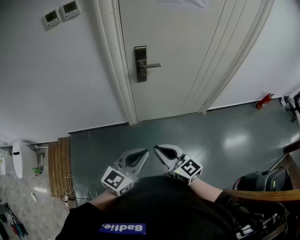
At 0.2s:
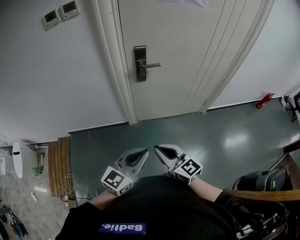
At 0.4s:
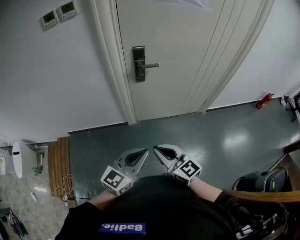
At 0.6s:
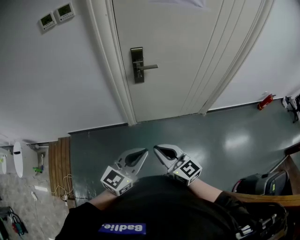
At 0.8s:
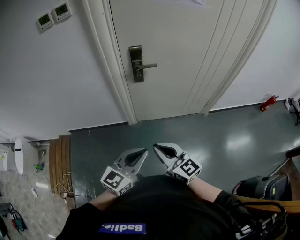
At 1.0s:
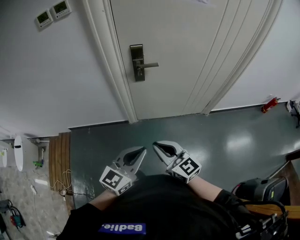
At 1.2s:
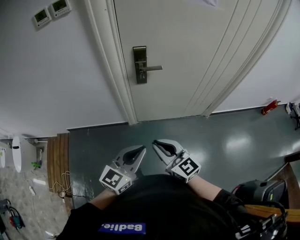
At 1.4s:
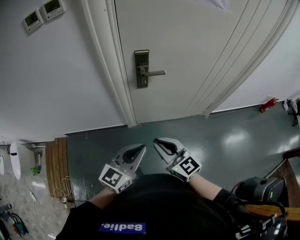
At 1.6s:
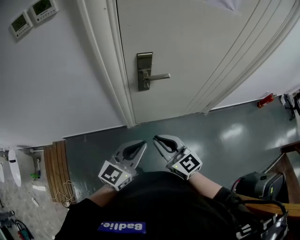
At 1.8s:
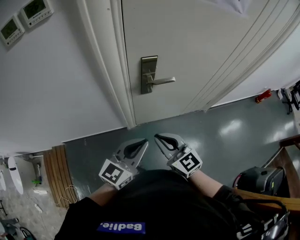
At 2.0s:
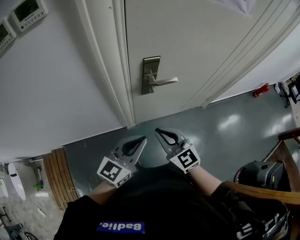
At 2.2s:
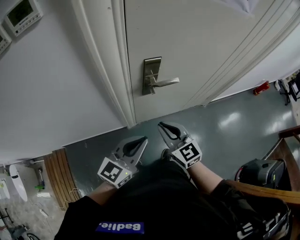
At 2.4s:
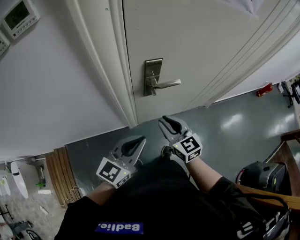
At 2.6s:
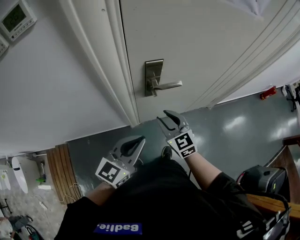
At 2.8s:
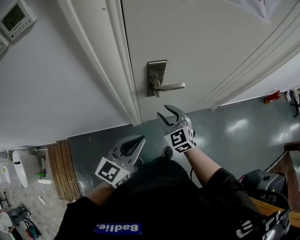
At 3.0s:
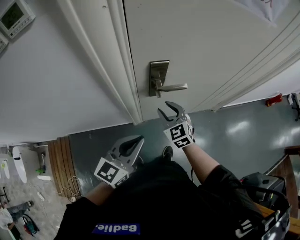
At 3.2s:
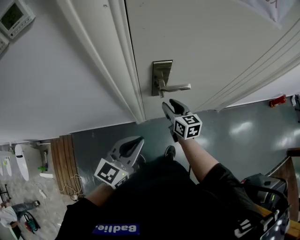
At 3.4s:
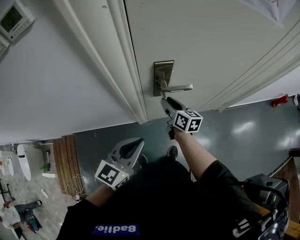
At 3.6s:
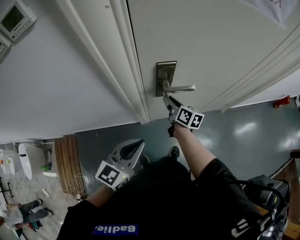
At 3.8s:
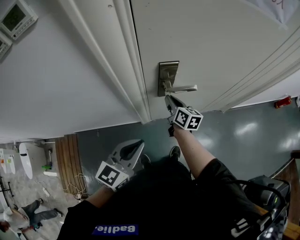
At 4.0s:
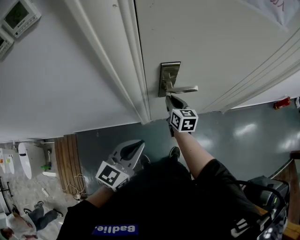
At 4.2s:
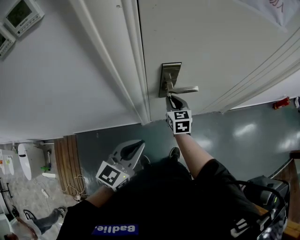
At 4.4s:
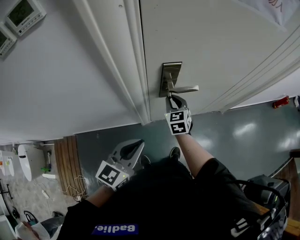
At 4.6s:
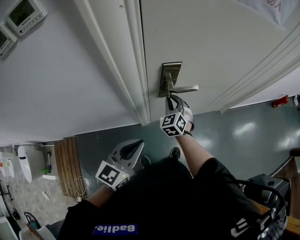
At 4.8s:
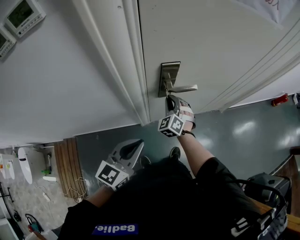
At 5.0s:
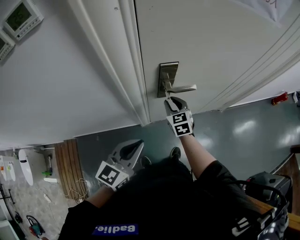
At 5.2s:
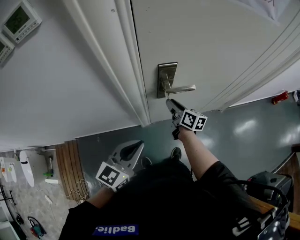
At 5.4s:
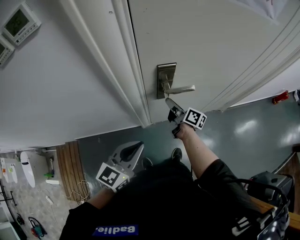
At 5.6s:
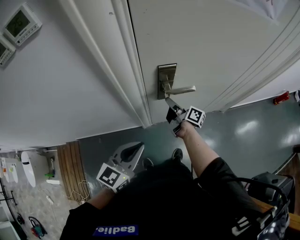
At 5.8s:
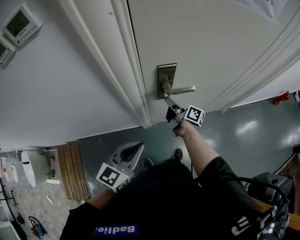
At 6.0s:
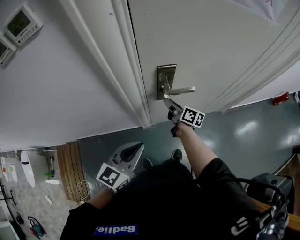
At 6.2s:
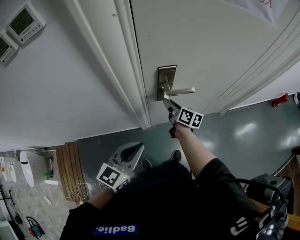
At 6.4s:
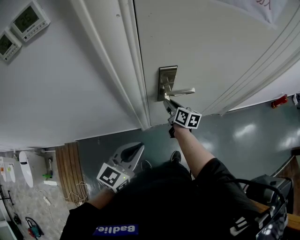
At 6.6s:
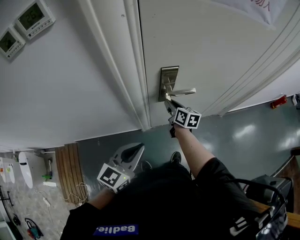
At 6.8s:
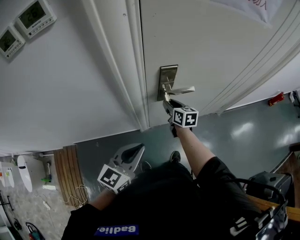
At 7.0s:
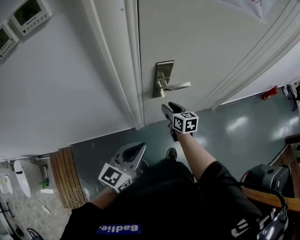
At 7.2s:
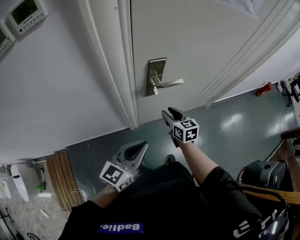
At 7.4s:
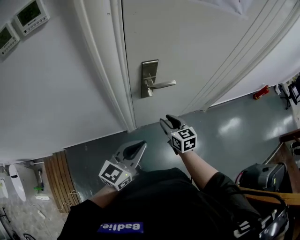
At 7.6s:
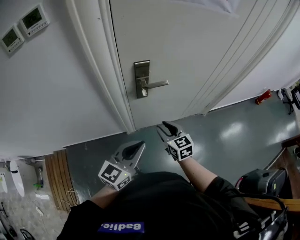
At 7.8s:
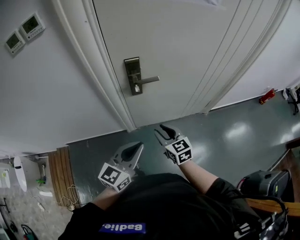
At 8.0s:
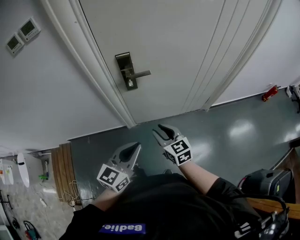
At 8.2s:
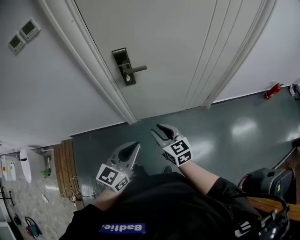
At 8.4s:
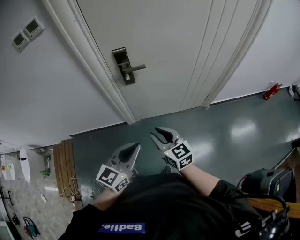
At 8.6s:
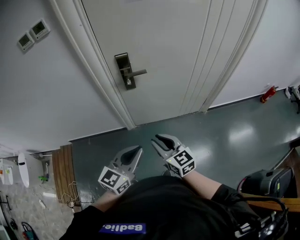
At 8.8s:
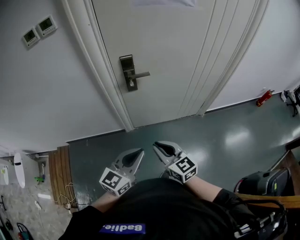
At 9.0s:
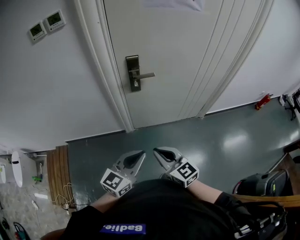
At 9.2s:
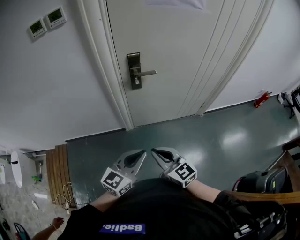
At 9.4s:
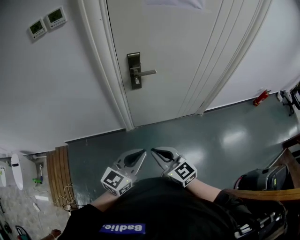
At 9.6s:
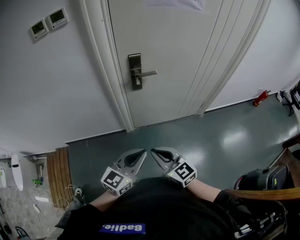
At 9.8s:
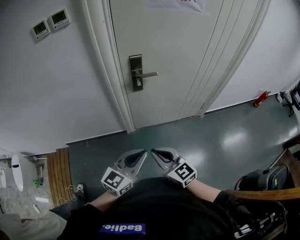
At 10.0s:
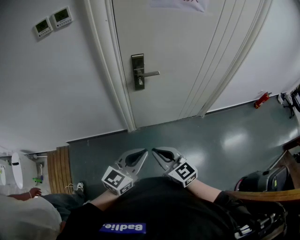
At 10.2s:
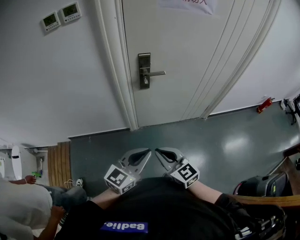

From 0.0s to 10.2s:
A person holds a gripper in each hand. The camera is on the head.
From 0.0s to 1.4s: The grippers both shift forward by roughly 15 cm.
From 1.4s to 3.0s: The left gripper is displaced forward and to the left by some 20 cm, while the right gripper heads forward, covering about 30 cm, swivels some 30 degrees, and opens up.
From 3.0s to 4.4s: The right gripper moves forward, some 5 cm.
From 4.4s to 5.8s: The right gripper twists approximately 80 degrees clockwise, seen from behind.
From 5.8s to 7.2s: The right gripper travels backward by approximately 10 cm, and rotates around the line of its fingers by approximately 50 degrees, counterclockwise from behind.
From 7.2s to 8.8s: The right gripper moves backward, some 30 cm, turns by roughly 30 degrees, and closes its fingers, while the left gripper shifts roughly 25 cm backward and to the right.
From 8.8s to 10.2s: The left gripper goes approximately 5 cm to the left. The right gripper moves to the left and backward, some 10 cm.

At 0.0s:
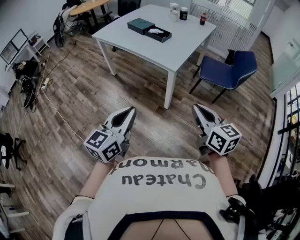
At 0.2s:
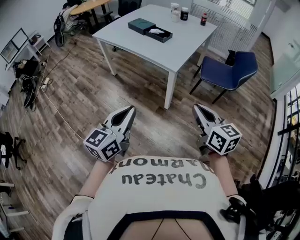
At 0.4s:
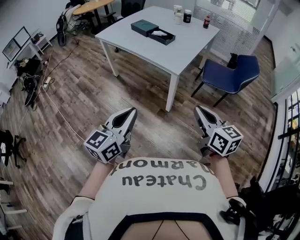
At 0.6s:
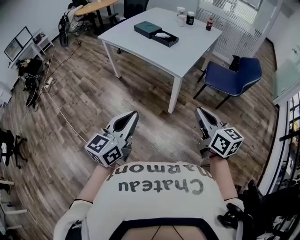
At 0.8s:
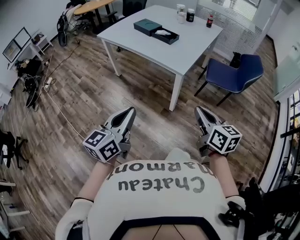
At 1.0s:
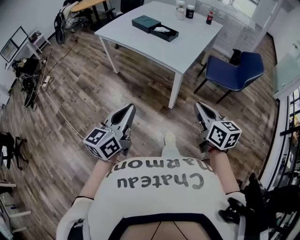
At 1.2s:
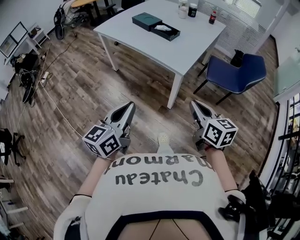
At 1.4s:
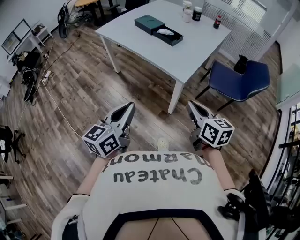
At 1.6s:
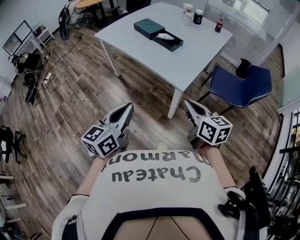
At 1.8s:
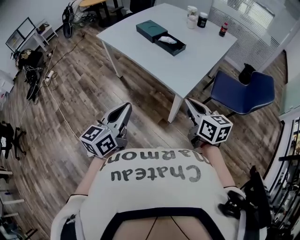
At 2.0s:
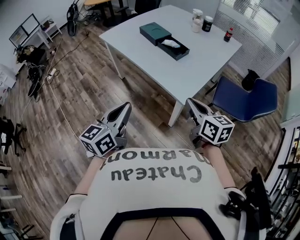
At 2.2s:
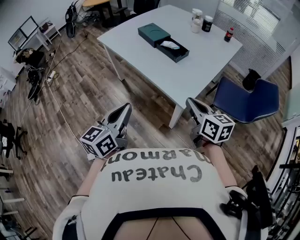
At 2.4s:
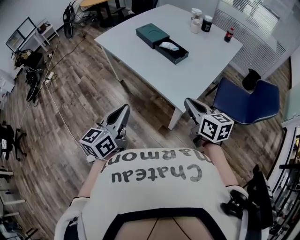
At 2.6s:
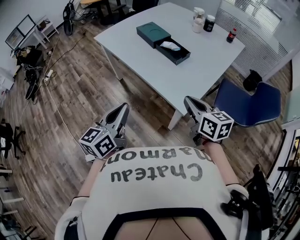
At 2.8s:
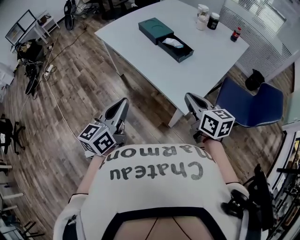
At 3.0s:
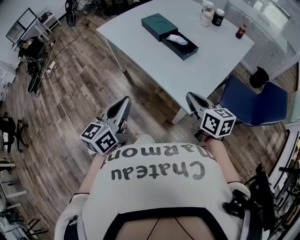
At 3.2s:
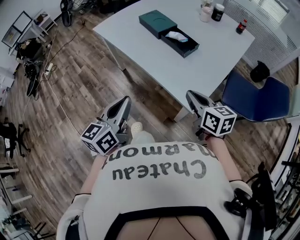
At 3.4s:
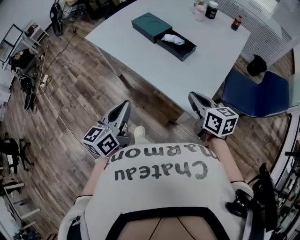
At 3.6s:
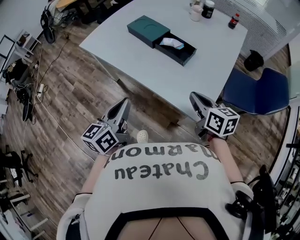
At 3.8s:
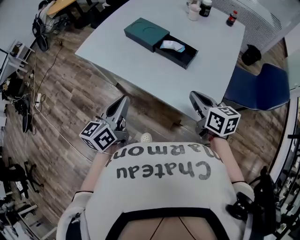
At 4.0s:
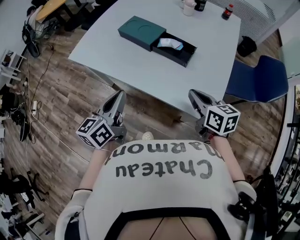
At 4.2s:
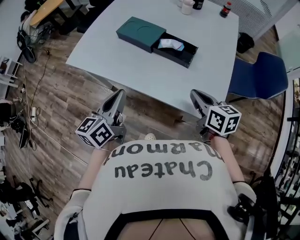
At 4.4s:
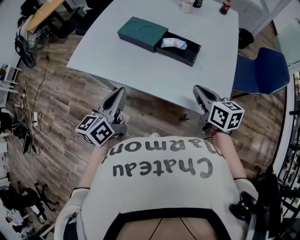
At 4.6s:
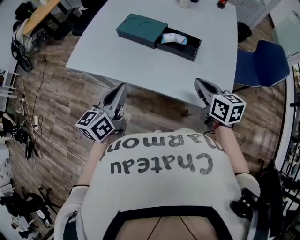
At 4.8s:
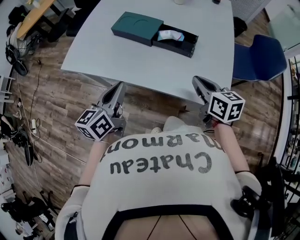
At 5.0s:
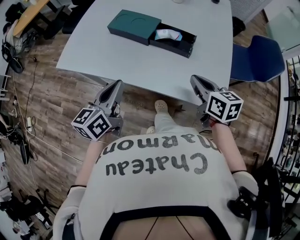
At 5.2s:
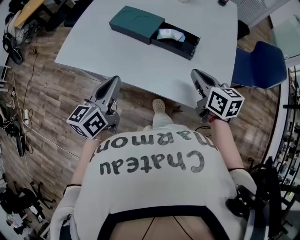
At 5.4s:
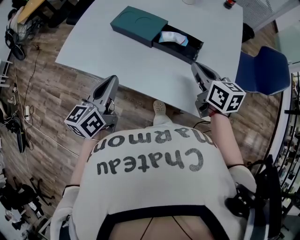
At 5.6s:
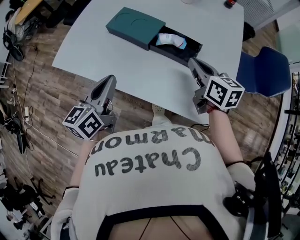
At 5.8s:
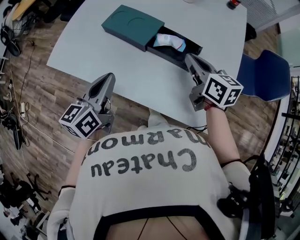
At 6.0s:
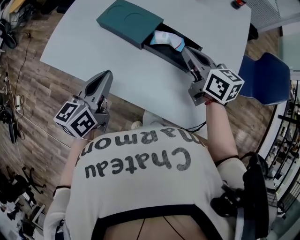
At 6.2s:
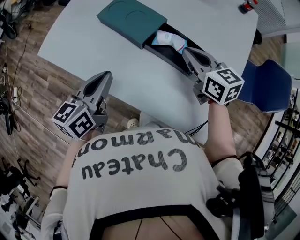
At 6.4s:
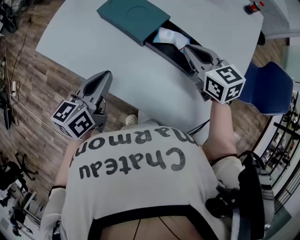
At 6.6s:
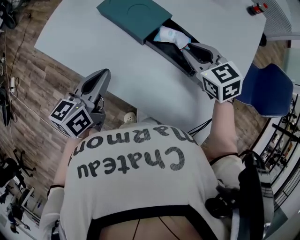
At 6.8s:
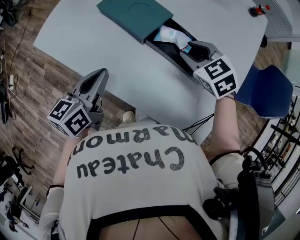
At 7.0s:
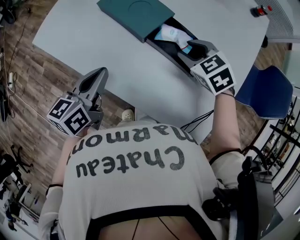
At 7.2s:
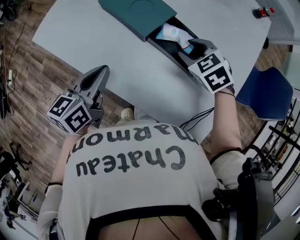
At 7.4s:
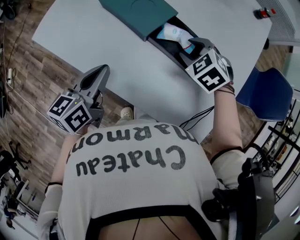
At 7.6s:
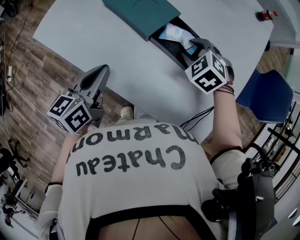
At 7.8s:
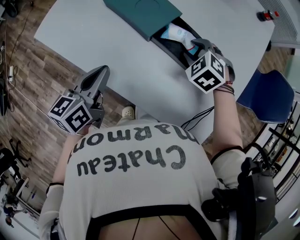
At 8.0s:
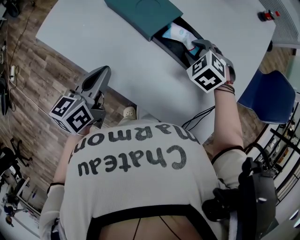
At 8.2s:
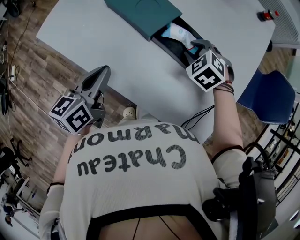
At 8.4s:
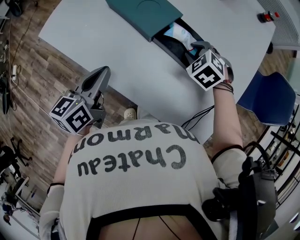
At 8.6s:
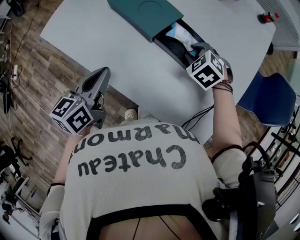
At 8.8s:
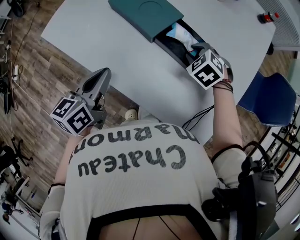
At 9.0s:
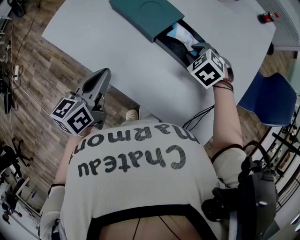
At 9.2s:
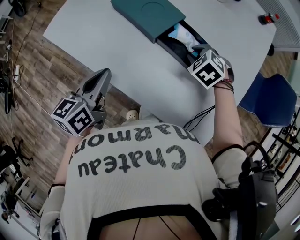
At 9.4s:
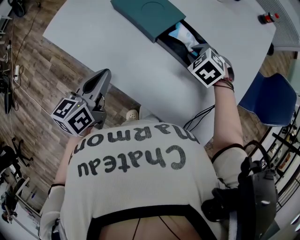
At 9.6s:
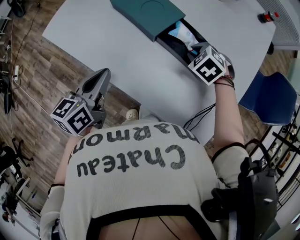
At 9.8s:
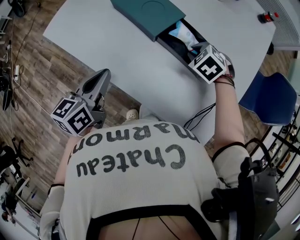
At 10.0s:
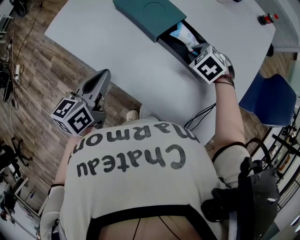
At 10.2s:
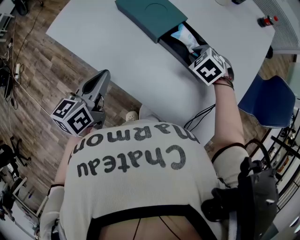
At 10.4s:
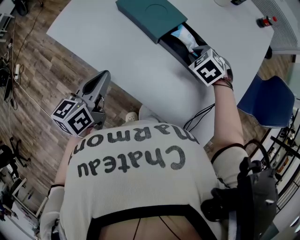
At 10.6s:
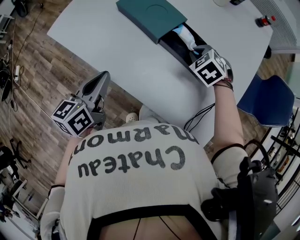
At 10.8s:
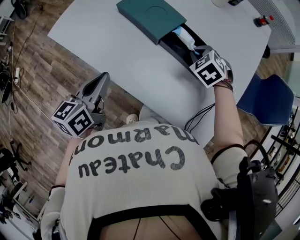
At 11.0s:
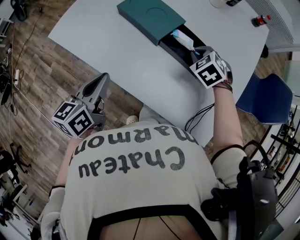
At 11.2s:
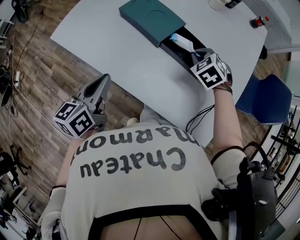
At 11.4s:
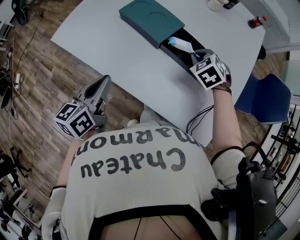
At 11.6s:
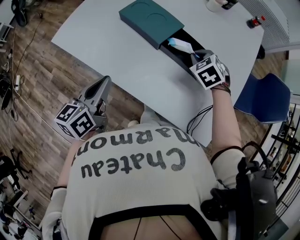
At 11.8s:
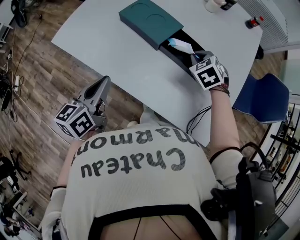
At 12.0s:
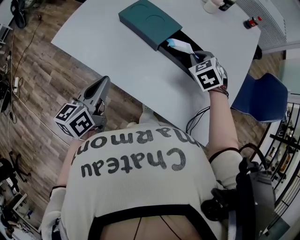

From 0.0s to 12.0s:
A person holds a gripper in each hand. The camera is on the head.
From 0.0s to 1.6s: Both grippers travel together forward, roughly 20 cm.
From 1.6s to 3.0s: The two grippers go roughly 20 cm forward.
From 3.0s to 4.4s: The right gripper heads forward and to the left, covering roughly 20 cm, and swivels some 30 degrees. The left gripper is displaced forward and to the left by roughly 30 cm, and turns by some 20 degrees.
From 4.4s to 6.0s: The left gripper is displaced forward by roughly 10 cm; the right gripper travels forward by roughly 20 cm.
From 6.0s to 7.6s: The left gripper shifts some 5 cm downward. The right gripper travels downward by approximately 10 cm, points its fingers some 40 degrees further downward, and opens its fingers.
From 7.6s to 10.4s: The grippers stay close to where they were, moving slightly.
From 10.4s to 12.0s: The right gripper travels upward by approximately 5 cm.

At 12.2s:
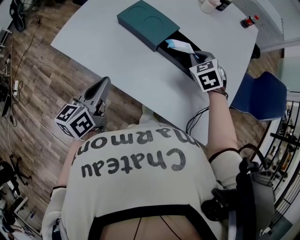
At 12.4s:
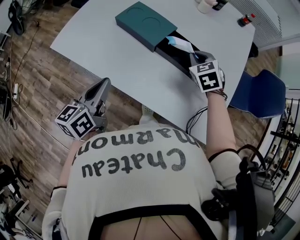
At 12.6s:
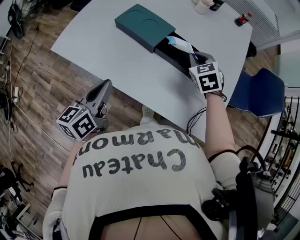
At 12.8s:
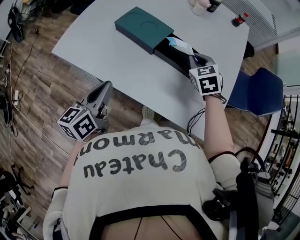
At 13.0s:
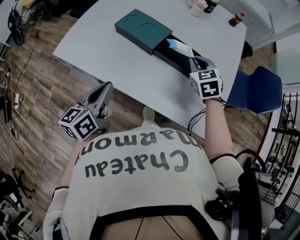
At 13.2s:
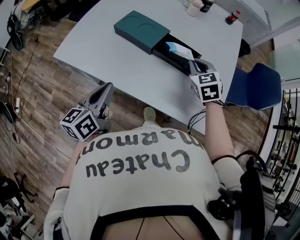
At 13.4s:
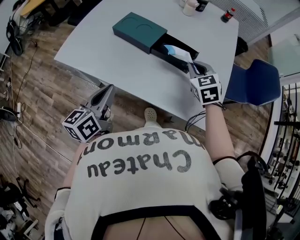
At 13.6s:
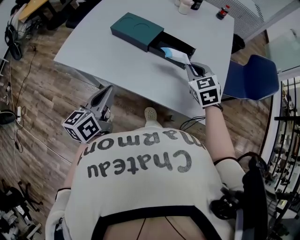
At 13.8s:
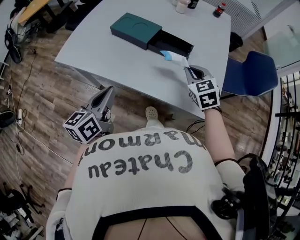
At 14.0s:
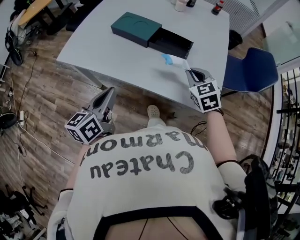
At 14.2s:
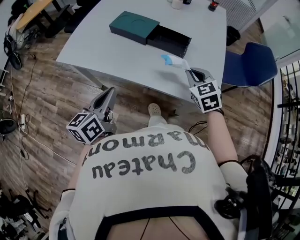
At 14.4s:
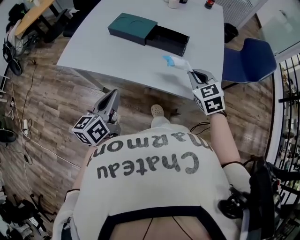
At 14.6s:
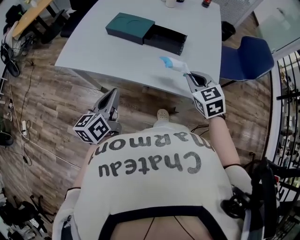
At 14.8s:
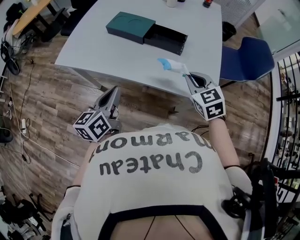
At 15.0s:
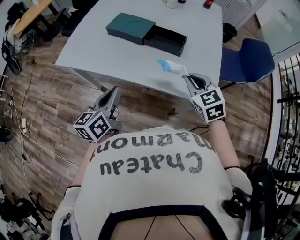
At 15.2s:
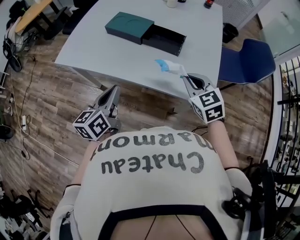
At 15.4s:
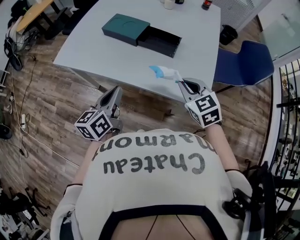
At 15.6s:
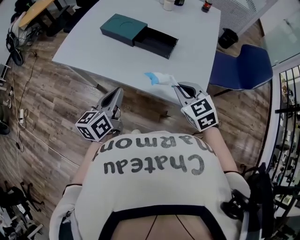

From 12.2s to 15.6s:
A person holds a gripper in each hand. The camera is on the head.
From 12.2s to 13.8s: The left gripper shifts roughly 10 cm backward. Meanwhile the right gripper shifts roughly 15 cm backward.
From 13.8s to 15.6s: The right gripper travels backward by roughly 10 cm, while the left gripper goes about 10 cm to the right.
